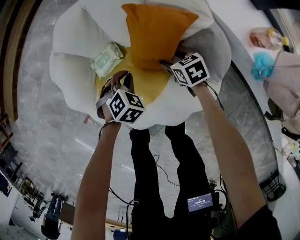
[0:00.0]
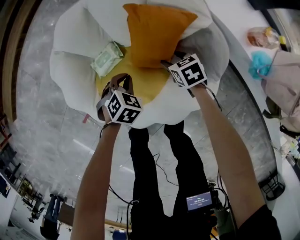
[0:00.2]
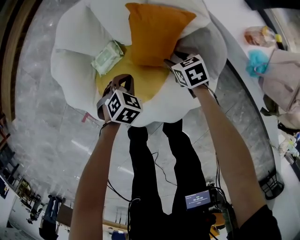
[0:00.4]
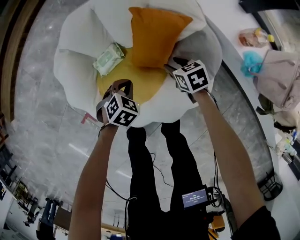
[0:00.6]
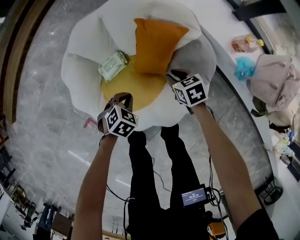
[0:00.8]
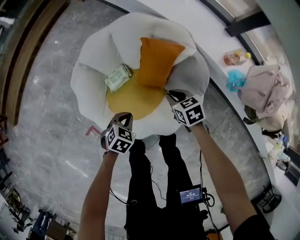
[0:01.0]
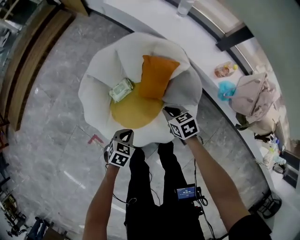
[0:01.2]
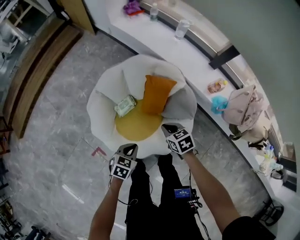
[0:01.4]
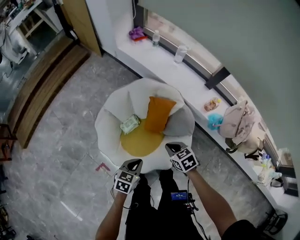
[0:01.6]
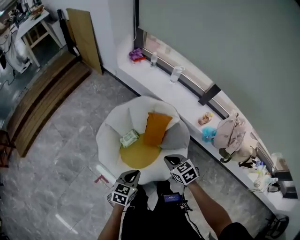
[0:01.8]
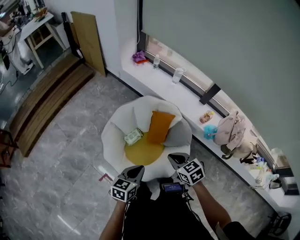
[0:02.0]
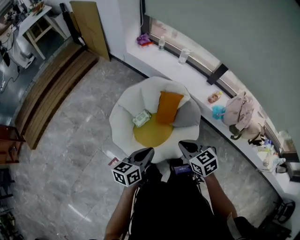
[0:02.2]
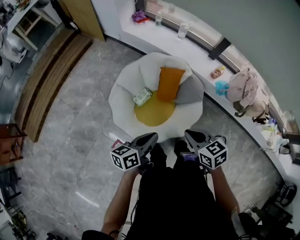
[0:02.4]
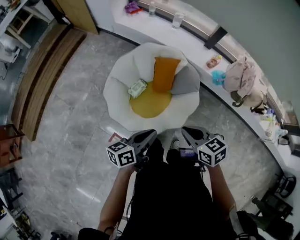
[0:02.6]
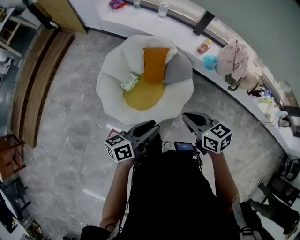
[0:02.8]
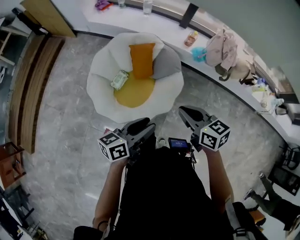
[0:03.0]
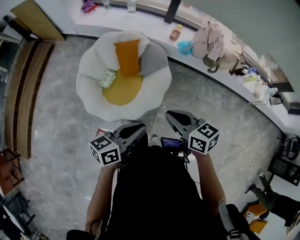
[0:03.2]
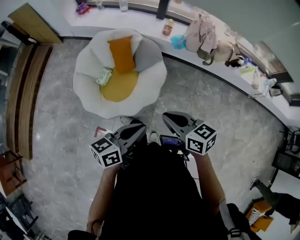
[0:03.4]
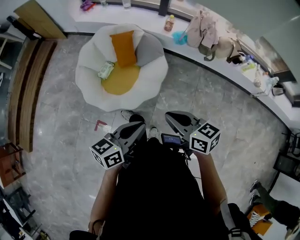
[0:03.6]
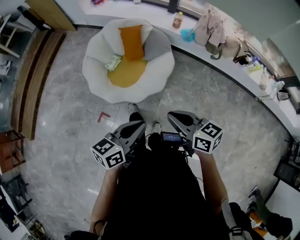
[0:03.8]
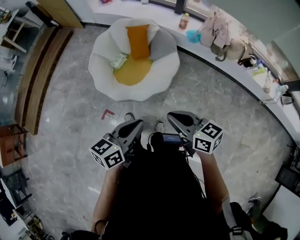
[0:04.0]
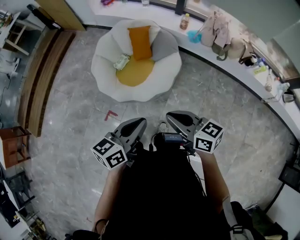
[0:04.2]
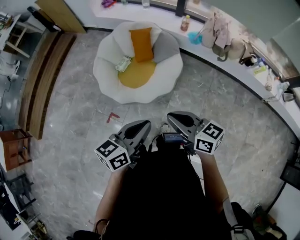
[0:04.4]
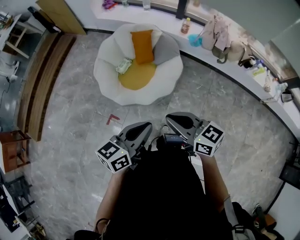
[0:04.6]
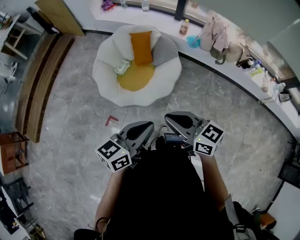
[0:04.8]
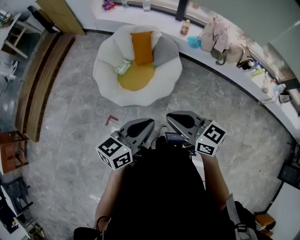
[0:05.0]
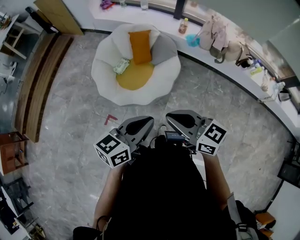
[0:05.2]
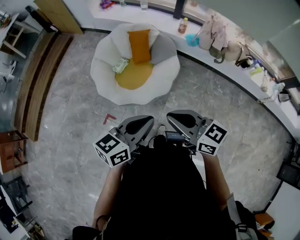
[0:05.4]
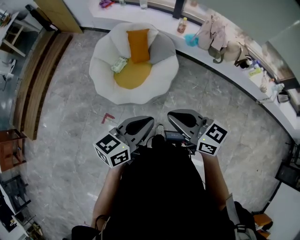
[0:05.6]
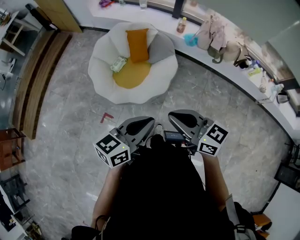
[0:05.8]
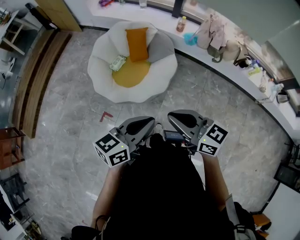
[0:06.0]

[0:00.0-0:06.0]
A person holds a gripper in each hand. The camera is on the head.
0:00.0 to 0:01.6: The right gripper shifts approximately 40 cm upward, and closes up. The left gripper moves upward and backward, some 40 cm, and swivels some 40 degrees.
0:01.6 to 0:03.0: Both grippers move upward and backward, about 25 cm. The left gripper tips its fingers upward by some 30 degrees, and opens its fingers. The right gripper turns by some 40 degrees.
0:03.0 to 0:04.4: Both grippers move backward, some 25 cm. The left gripper closes up.
0:04.4 to 0:06.0: The grippers move only a little.

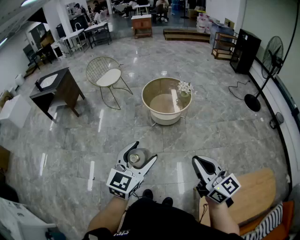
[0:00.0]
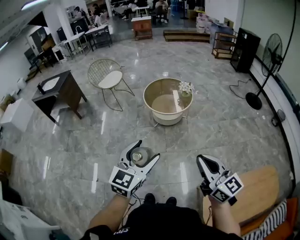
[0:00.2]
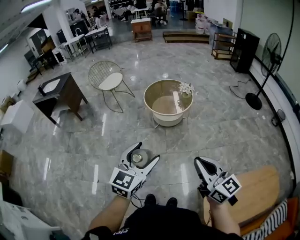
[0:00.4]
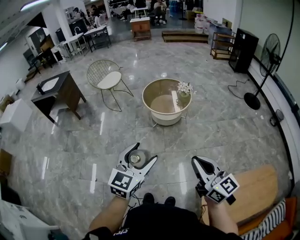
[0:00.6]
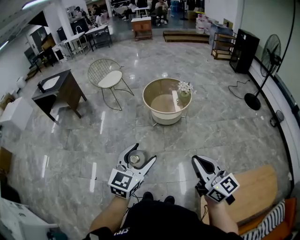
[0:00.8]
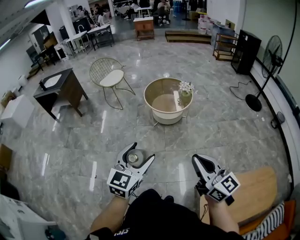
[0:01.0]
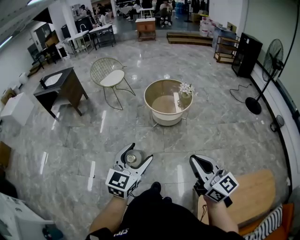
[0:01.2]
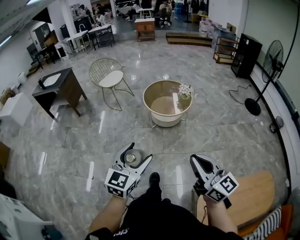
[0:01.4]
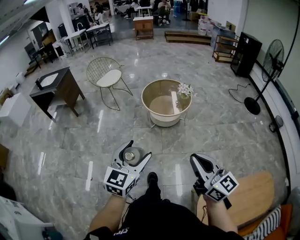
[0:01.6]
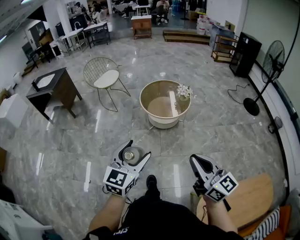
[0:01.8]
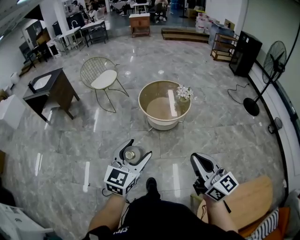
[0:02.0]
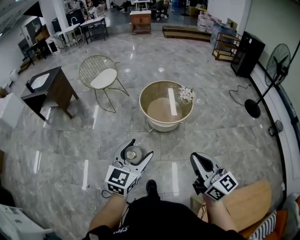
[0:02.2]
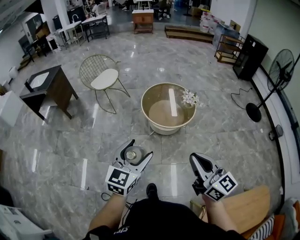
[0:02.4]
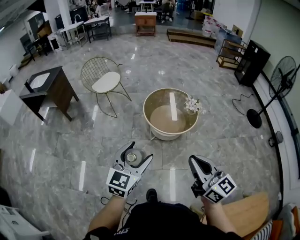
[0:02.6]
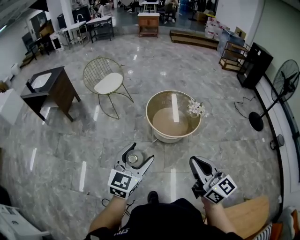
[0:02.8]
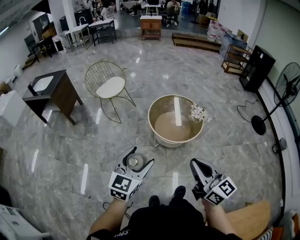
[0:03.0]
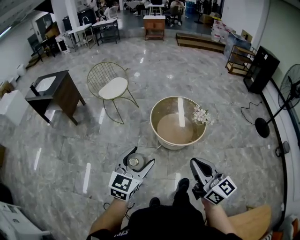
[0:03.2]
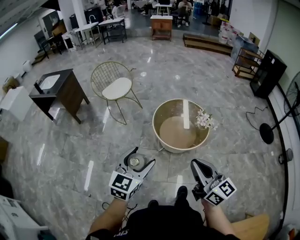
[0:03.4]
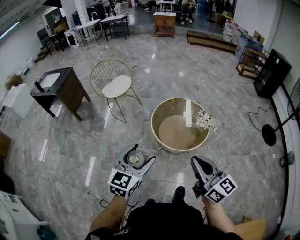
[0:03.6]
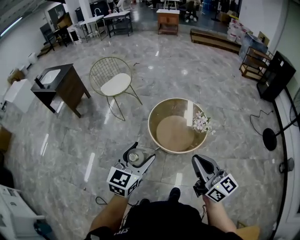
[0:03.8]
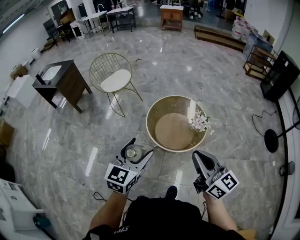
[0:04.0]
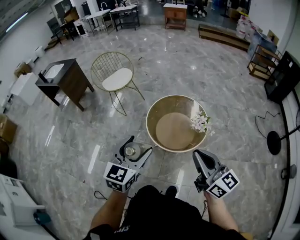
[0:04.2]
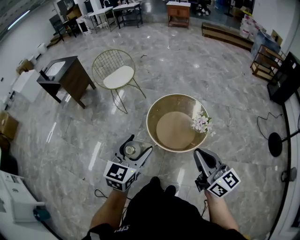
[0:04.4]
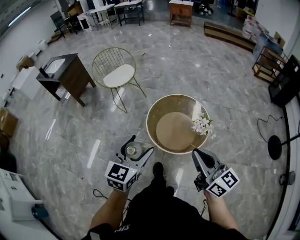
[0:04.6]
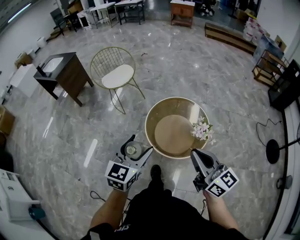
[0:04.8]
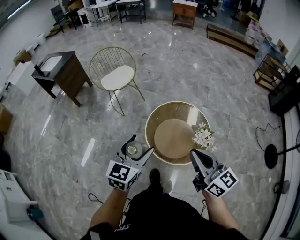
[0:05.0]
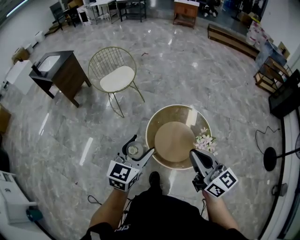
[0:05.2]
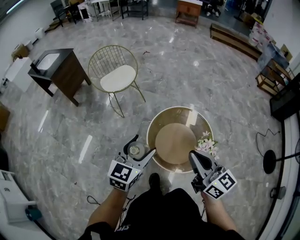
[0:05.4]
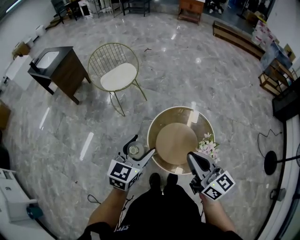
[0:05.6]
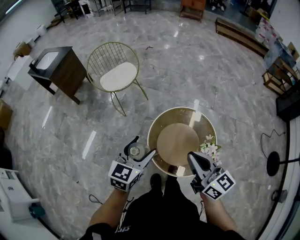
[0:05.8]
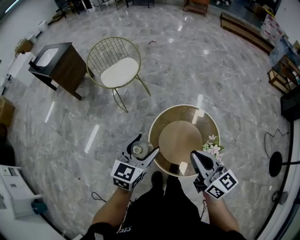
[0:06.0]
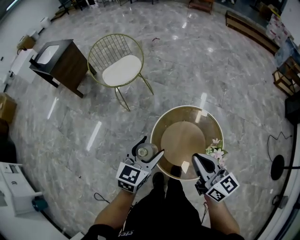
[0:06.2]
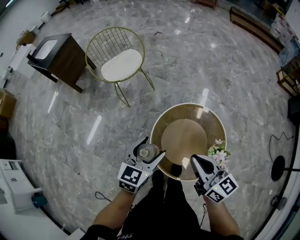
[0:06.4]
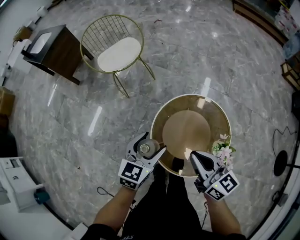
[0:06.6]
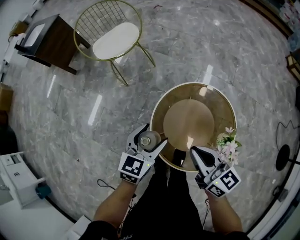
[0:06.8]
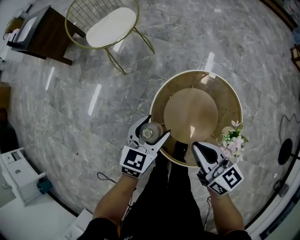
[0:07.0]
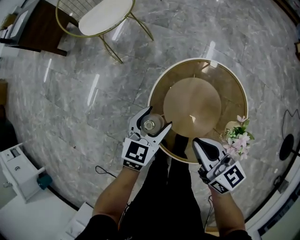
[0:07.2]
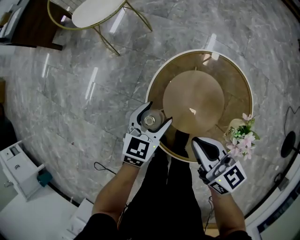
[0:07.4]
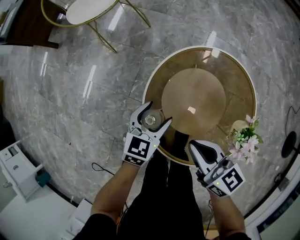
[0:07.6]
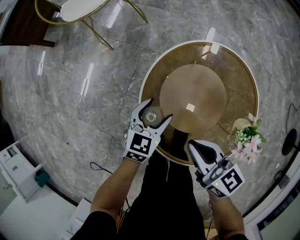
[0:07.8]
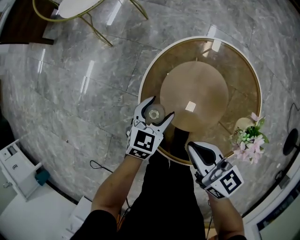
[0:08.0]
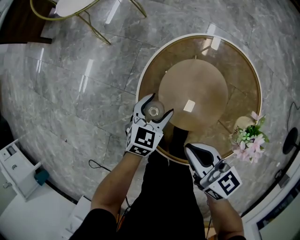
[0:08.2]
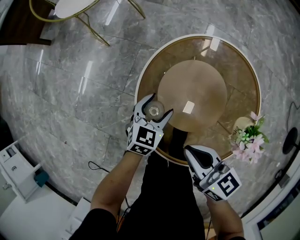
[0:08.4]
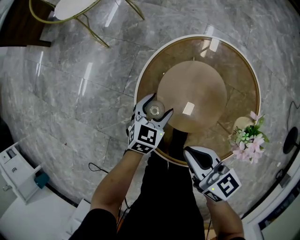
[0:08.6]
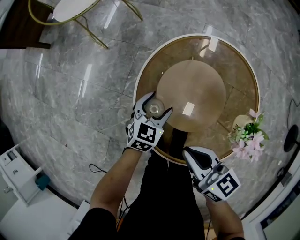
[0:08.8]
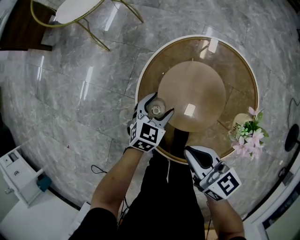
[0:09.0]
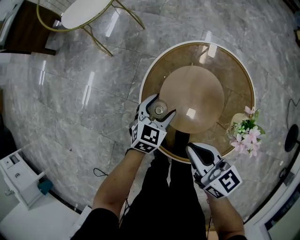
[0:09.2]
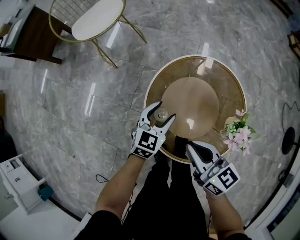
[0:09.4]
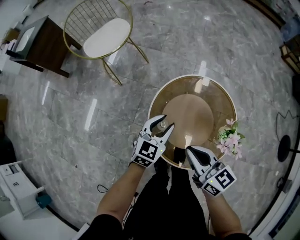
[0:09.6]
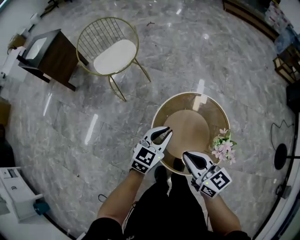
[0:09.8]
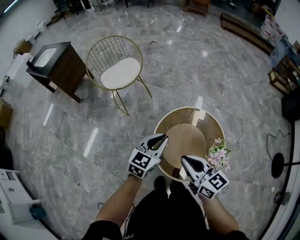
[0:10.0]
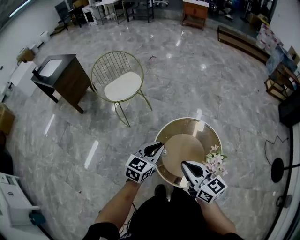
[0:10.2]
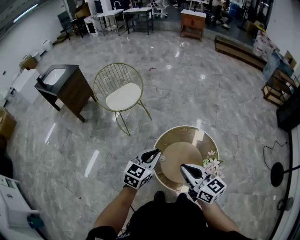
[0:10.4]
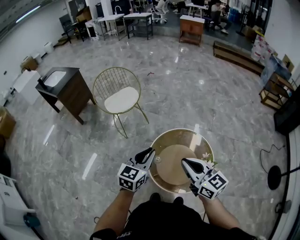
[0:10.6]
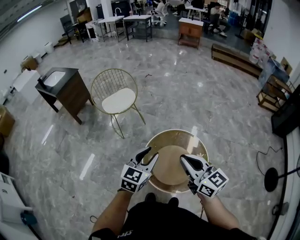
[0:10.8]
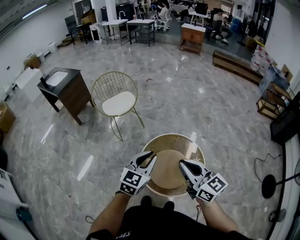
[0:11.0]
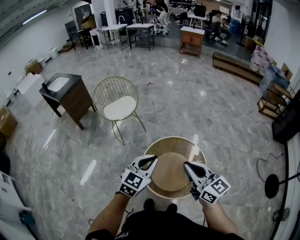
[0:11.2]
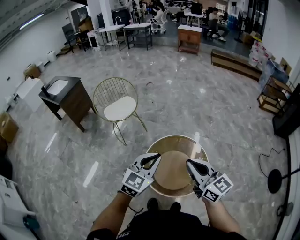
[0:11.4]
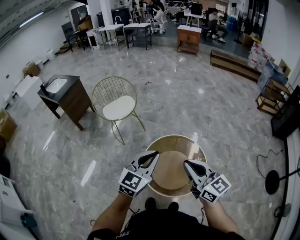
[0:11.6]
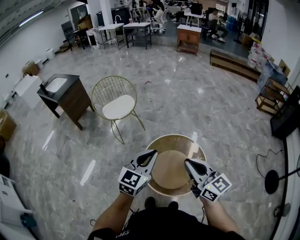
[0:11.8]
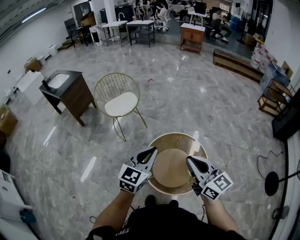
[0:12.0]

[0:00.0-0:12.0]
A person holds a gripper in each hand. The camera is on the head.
0:00.0 to 0:01.6: There are only small adjustments of the grippers.
0:01.6 to 0:03.0: Both grippers travel together forward, about 35 cm.
0:03.0 to 0:04.4: Both grippers move to the right and forward, approximately 30 cm.
0:04.4 to 0:06.0: The grippers both shift forward by roughly 35 cm.
0:06.0 to 0:07.6: The grippers both shift downward by some 40 cm. The right gripper rotates about 20 degrees.
0:07.6 to 0:09.0: The left gripper is displaced downward by some 10 cm, while the right gripper shifts by about 5 cm.
0:09.0 to 0:10.4: Both grippers move upward, about 50 cm. The right gripper swivels approximately 20 degrees. Meanwhile the left gripper swivels roughly 20 degrees, and closes.
0:10.4 to 0:12.0: The right gripper goes some 15 cm upward and to the right. The left gripper heads upward, backward and to the right, covering roughly 15 cm.

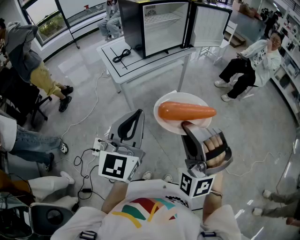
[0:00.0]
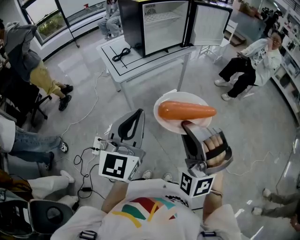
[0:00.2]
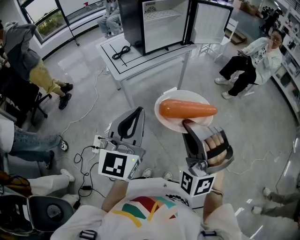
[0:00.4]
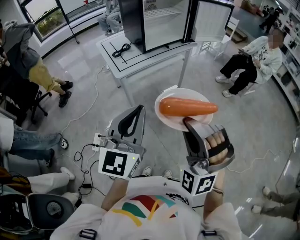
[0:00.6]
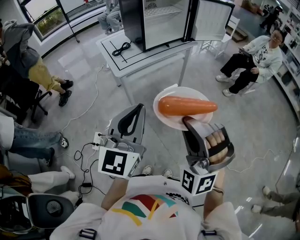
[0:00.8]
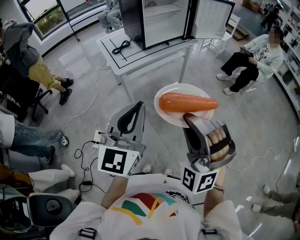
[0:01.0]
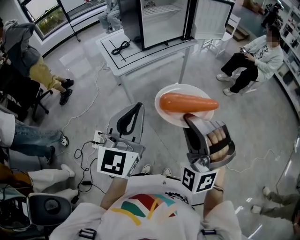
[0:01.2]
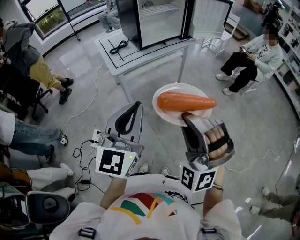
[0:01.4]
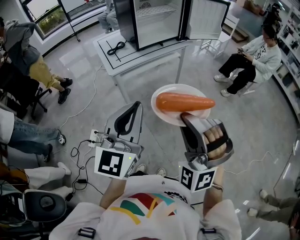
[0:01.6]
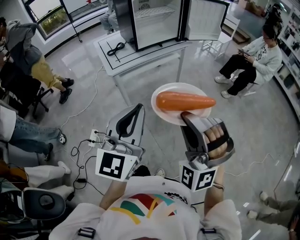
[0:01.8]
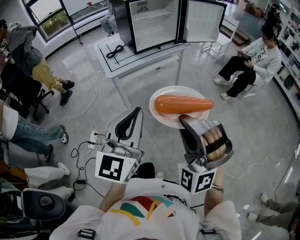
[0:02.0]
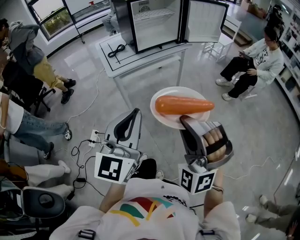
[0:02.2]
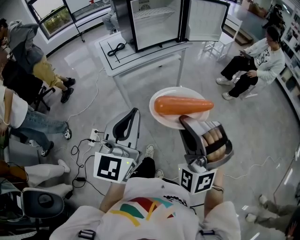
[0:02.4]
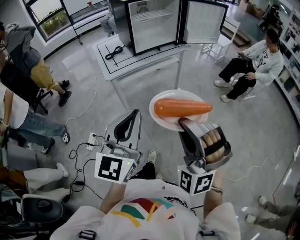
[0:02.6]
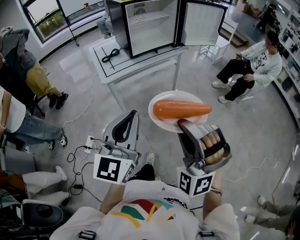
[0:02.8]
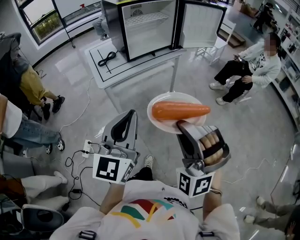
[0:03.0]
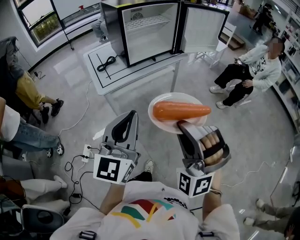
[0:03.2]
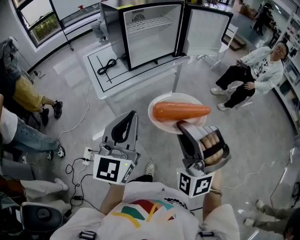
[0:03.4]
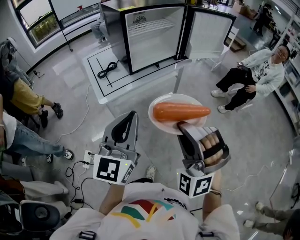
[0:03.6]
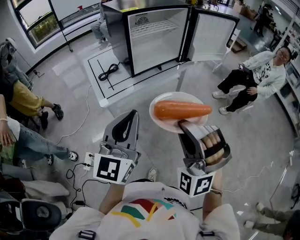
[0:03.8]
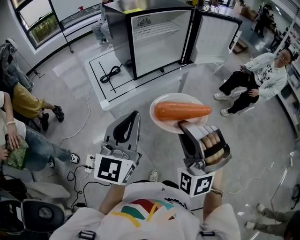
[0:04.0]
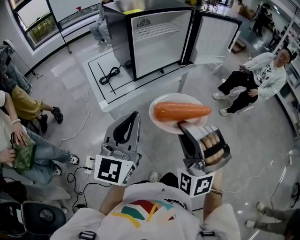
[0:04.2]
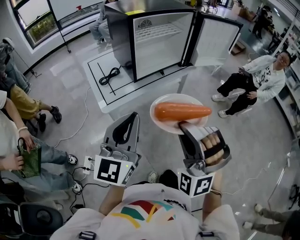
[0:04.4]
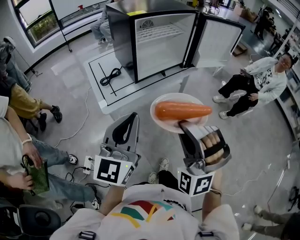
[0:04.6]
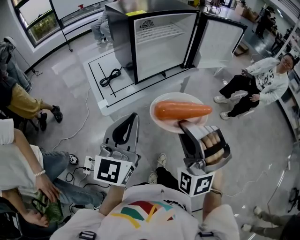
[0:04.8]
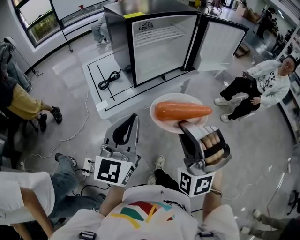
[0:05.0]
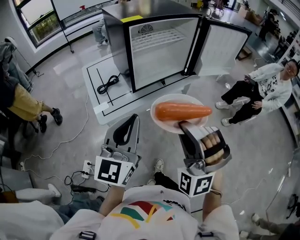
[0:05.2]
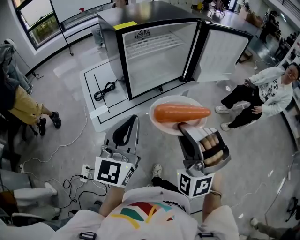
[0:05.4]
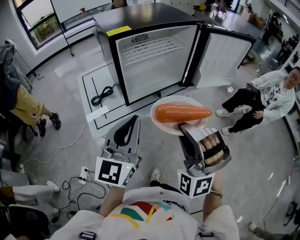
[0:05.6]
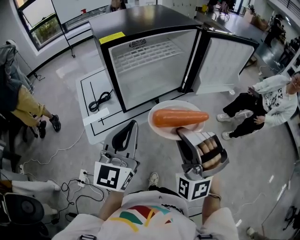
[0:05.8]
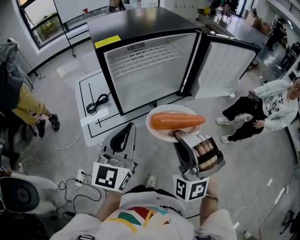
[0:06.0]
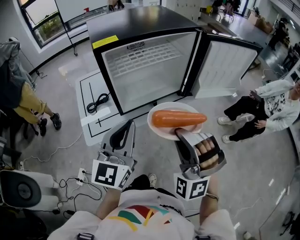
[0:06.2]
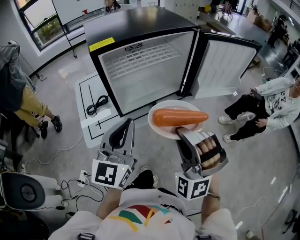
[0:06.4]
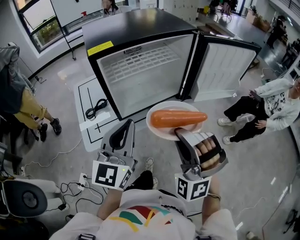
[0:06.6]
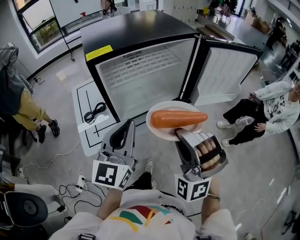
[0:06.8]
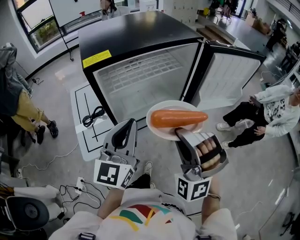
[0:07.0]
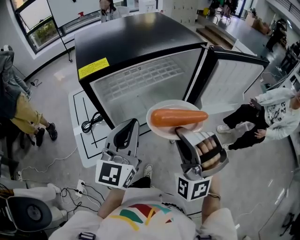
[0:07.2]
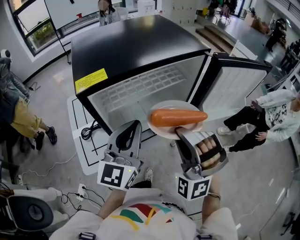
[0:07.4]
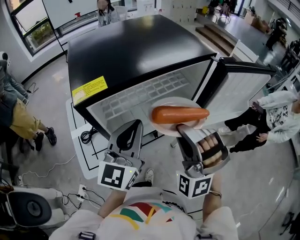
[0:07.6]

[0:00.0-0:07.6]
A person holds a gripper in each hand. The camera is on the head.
0:00.0 to 0:01.6: Both grippers move to the right, roughly 10 cm.
0:01.6 to 0:03.0: Both grippers travel together forward, roughly 5 cm.
0:03.0 to 0:04.6: Both grippers move forward and to the left, approximately 20 cm.
0:04.6 to 0:06.0: The grippers both shift forward by about 25 cm.
0:06.0 to 0:07.6: The two grippers go approximately 20 cm forward.
